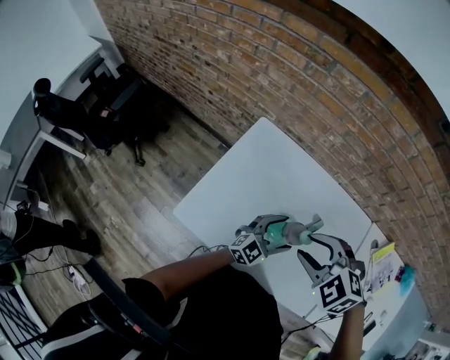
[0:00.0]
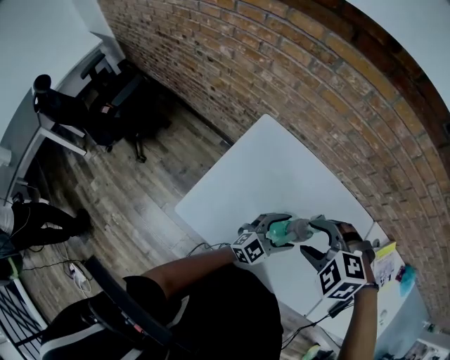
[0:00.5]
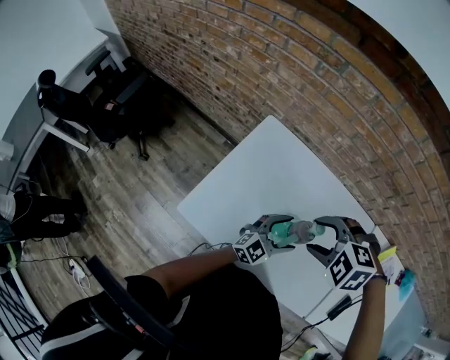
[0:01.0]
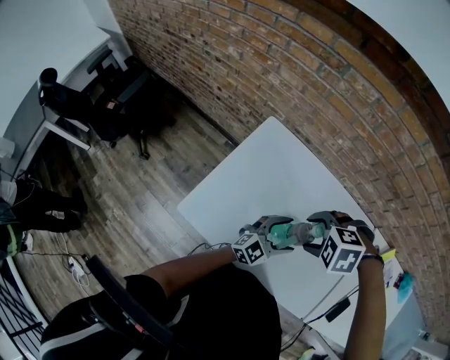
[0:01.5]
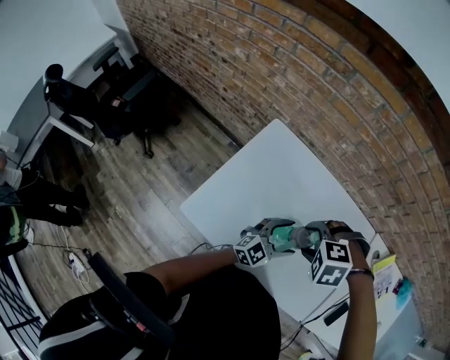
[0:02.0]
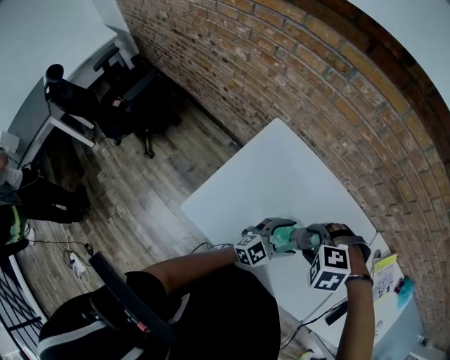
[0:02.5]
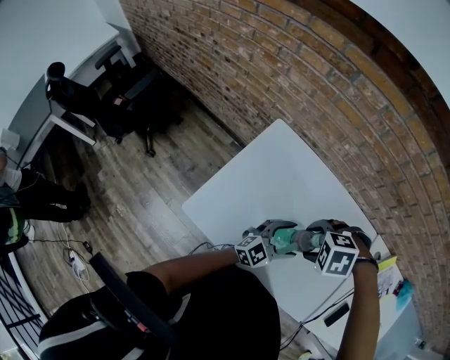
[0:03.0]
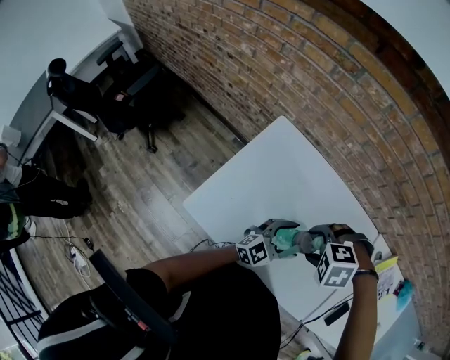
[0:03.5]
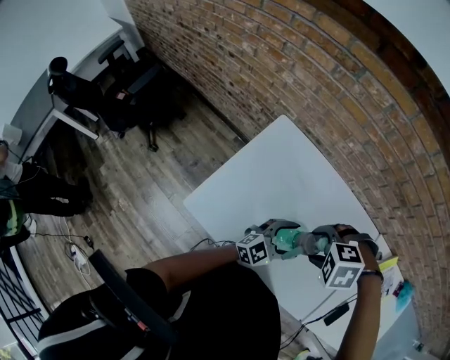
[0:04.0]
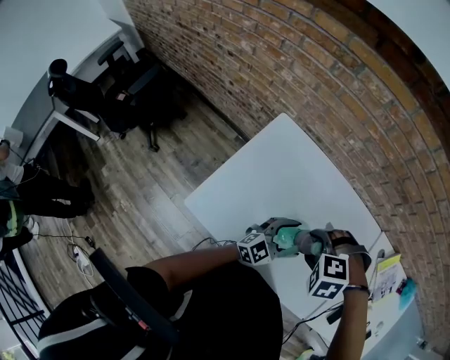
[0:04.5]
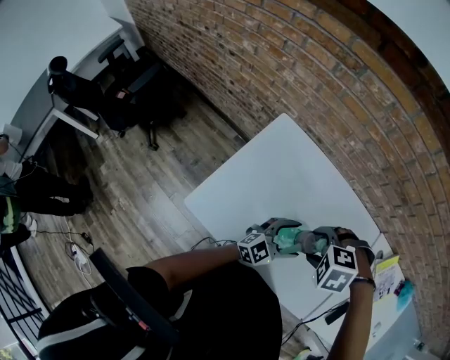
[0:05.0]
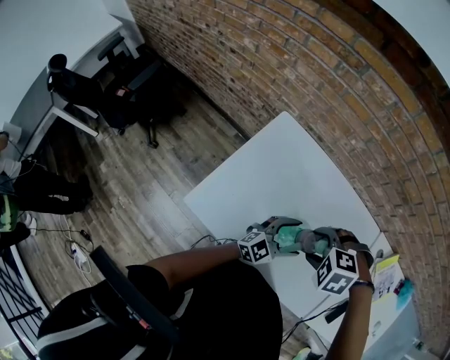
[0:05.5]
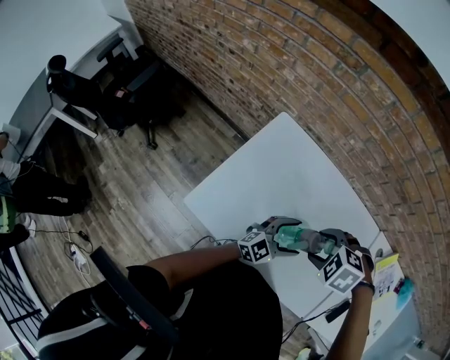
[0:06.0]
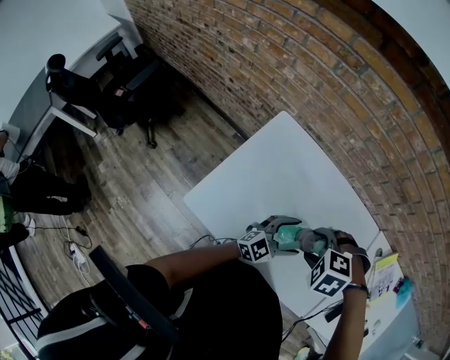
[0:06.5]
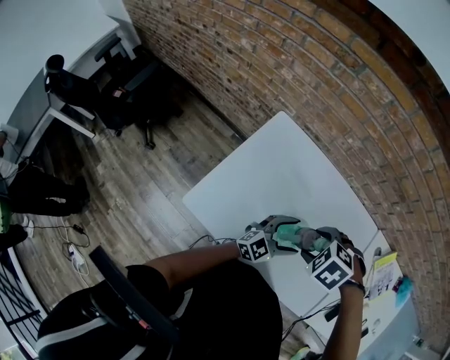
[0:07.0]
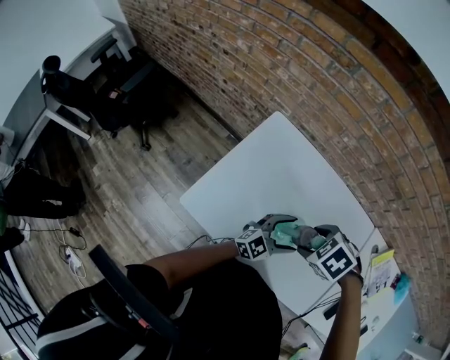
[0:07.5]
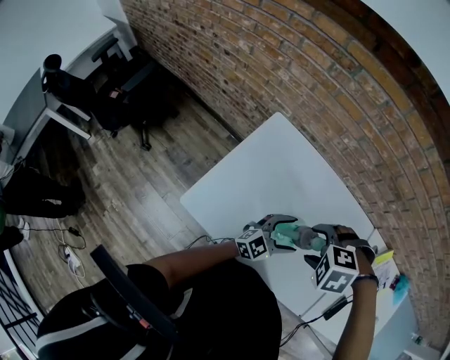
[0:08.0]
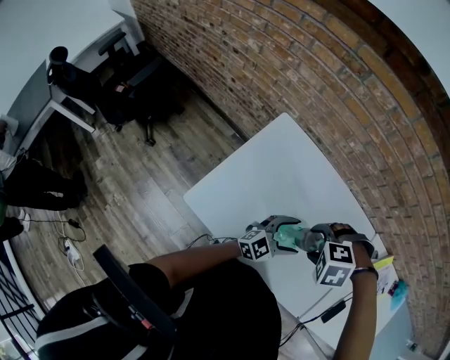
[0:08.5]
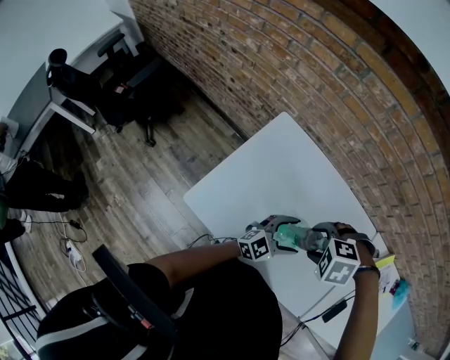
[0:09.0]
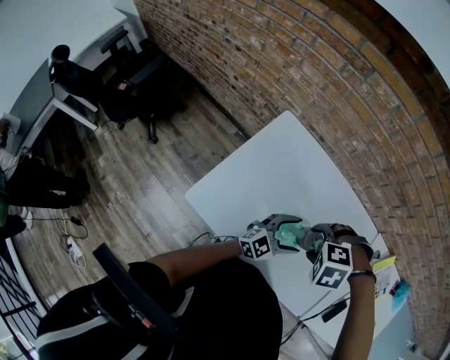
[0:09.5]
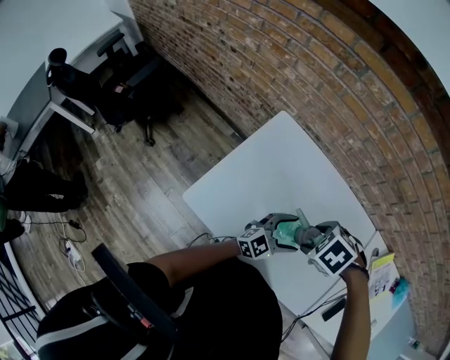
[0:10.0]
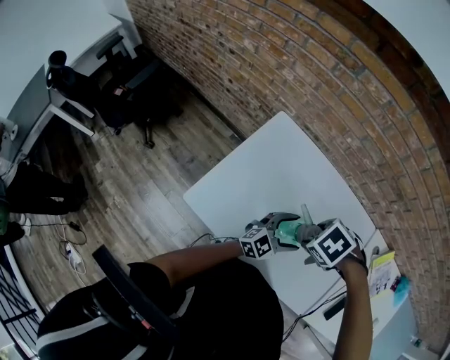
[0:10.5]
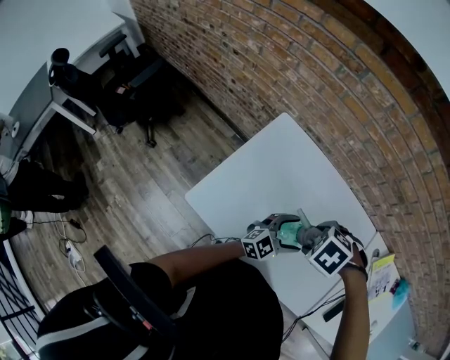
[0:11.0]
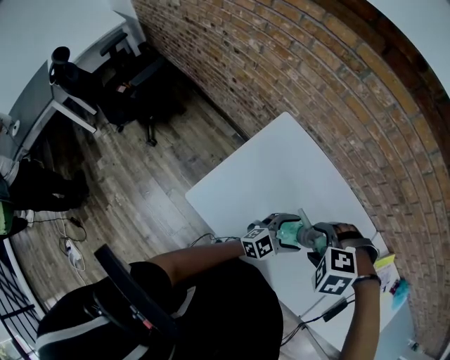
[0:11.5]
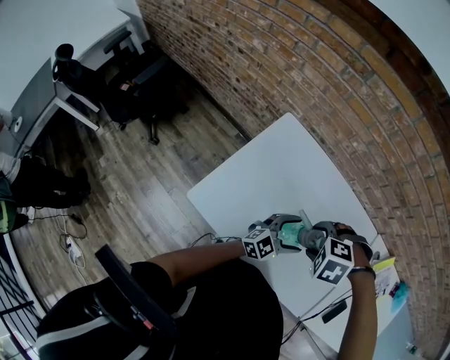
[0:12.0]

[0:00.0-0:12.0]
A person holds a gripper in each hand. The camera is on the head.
0:00.0 to 0:02.0: The right gripper goes some 5 cm downward, turns by approximately 30 degrees, and opens up.
0:02.0 to 0:04.0: The grippers move only a little.
0:04.0 to 0:06.0: The right gripper changes its angle by some 20 degrees.
0:08.0 to 0:10.0: The right gripper swivels about 30 degrees.
0:10.0 to 0:12.0: The right gripper rotates some 30 degrees.

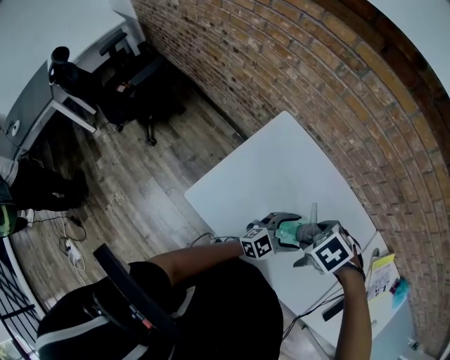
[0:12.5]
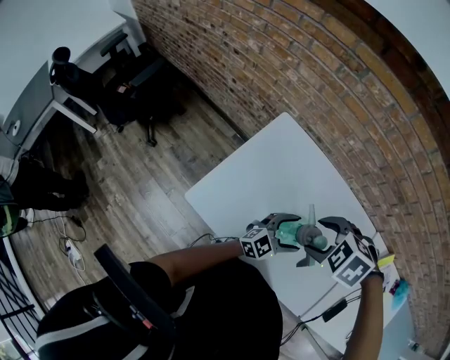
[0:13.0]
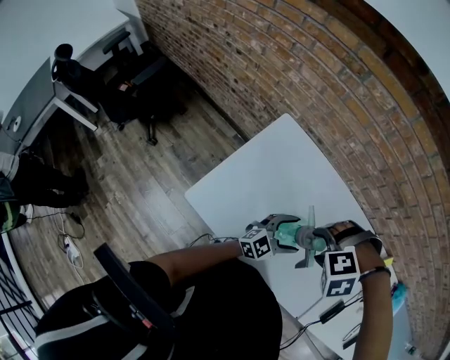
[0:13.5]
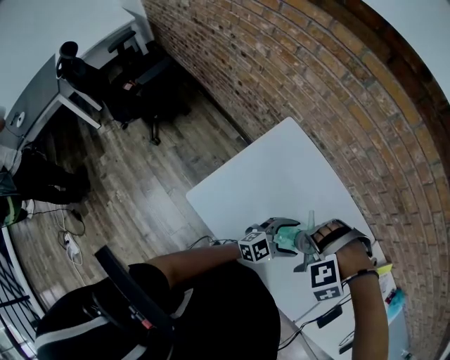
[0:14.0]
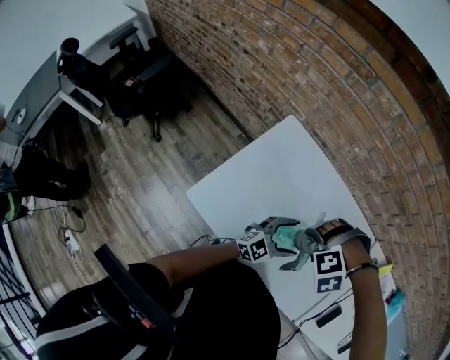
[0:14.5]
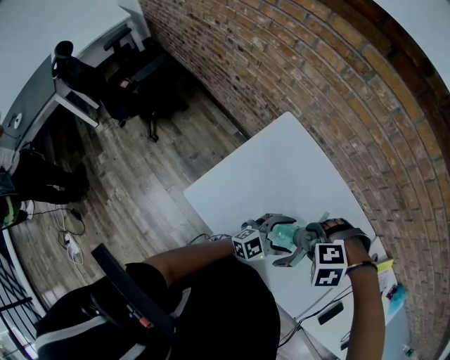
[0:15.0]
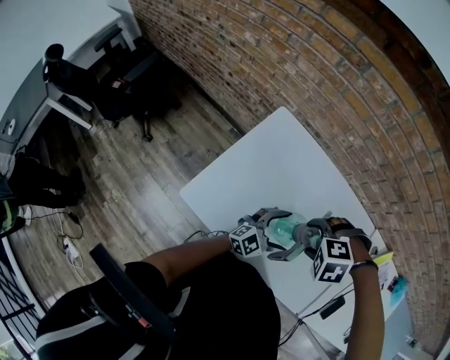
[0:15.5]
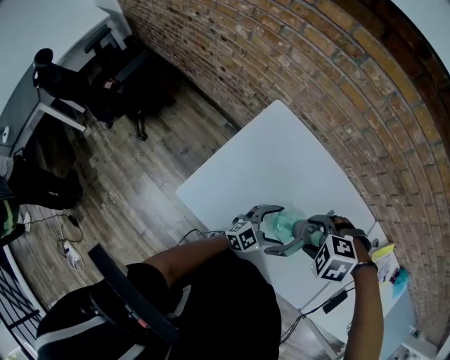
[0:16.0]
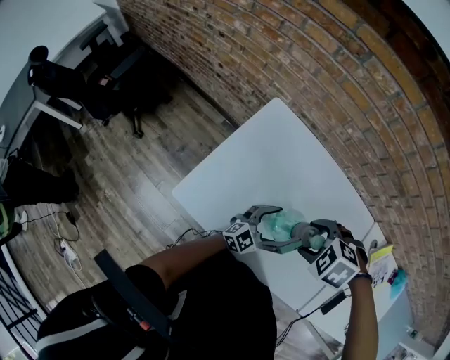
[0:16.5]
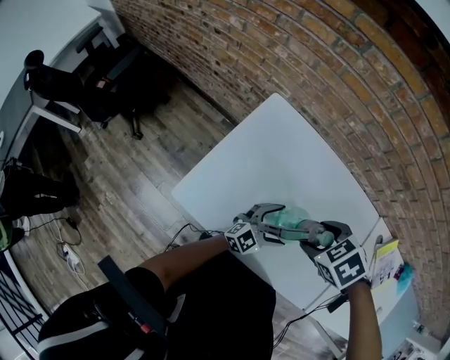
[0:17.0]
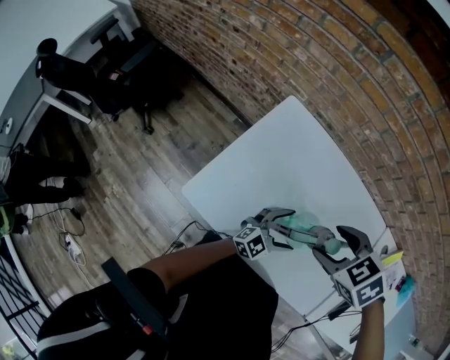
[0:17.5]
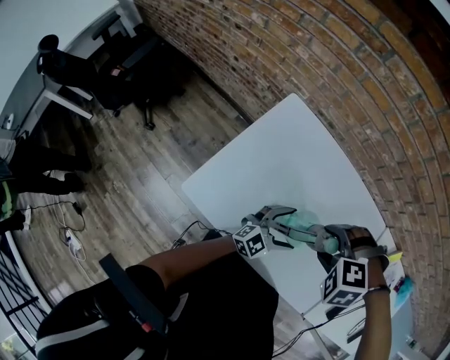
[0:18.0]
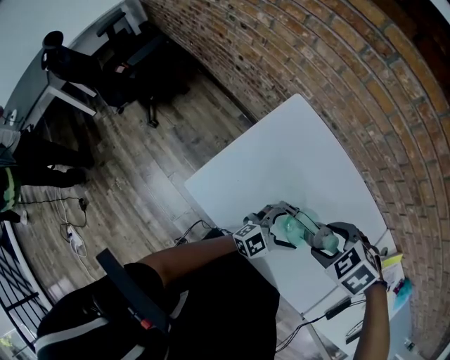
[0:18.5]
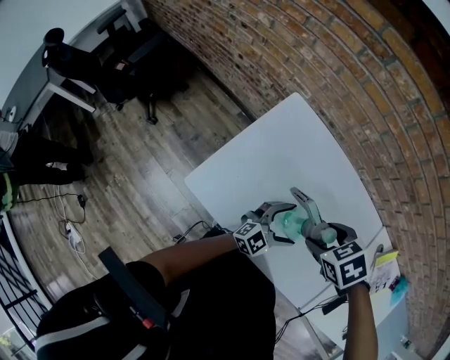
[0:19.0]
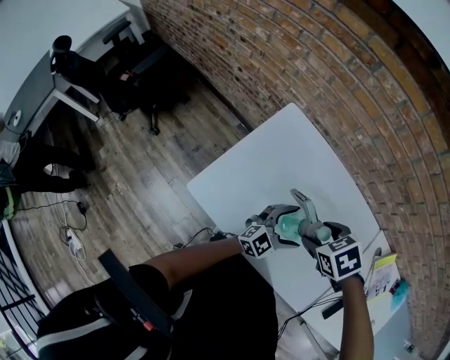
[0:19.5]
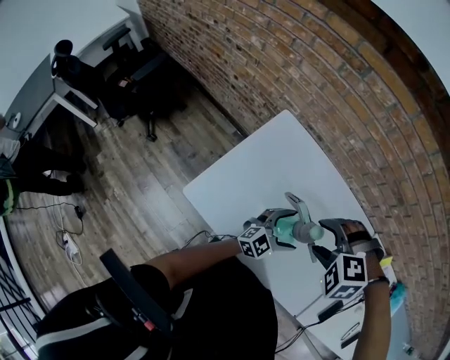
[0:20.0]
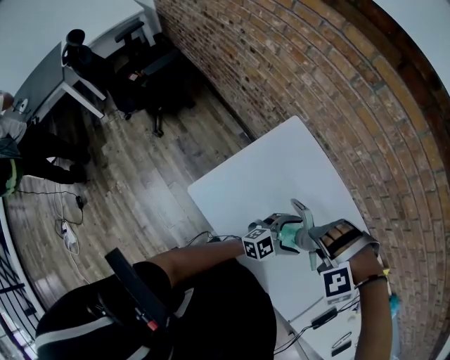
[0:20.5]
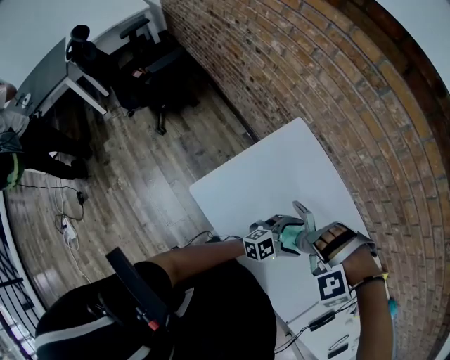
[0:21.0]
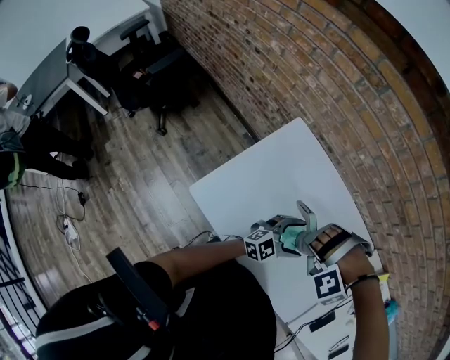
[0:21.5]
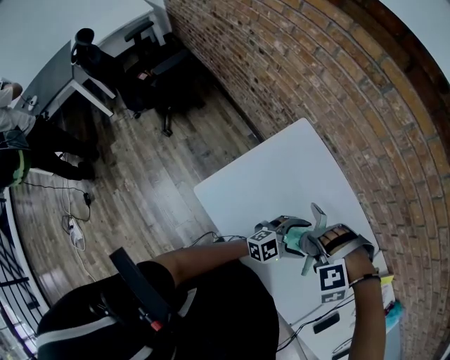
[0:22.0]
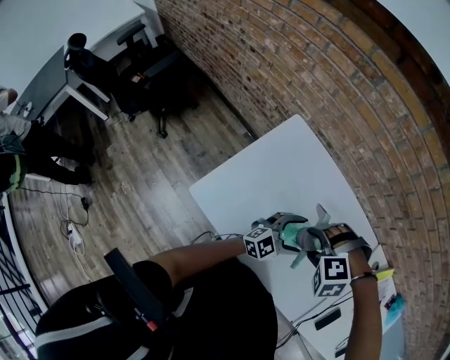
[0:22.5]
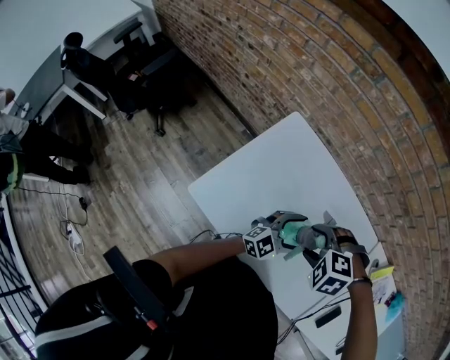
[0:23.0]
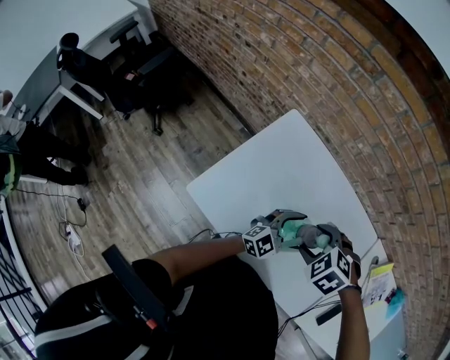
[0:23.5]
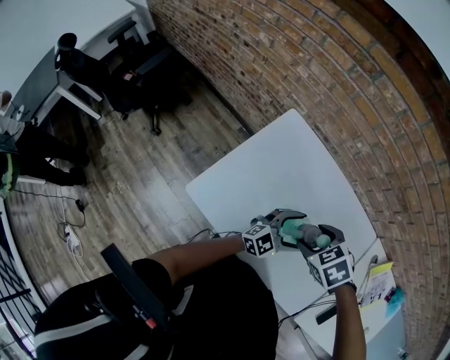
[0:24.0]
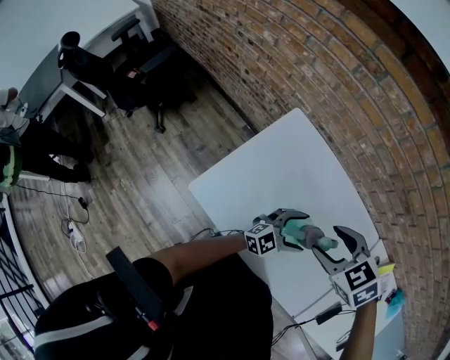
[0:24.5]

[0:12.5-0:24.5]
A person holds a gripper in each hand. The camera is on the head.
0:12.5 to 0:14.5: The right gripper rolls counterclockwise, seen from behind, by approximately 70 degrees.
0:14.5 to 0:16.5: The left gripper travels downward by roughly 5 cm; the right gripper rolls clockwise, seen from behind, by roughly 50 degrees.
0:18.5 to 0:20.5: The right gripper rolls counterclockwise, seen from behind, by some 70 degrees.
0:20.5 to 0:22.5: The right gripper swivels roughly 30 degrees.
0:22.5 to 0:24.5: The right gripper moves upward, approximately 10 cm, and rolls clockwise, seen from behind, by roughly 60 degrees.

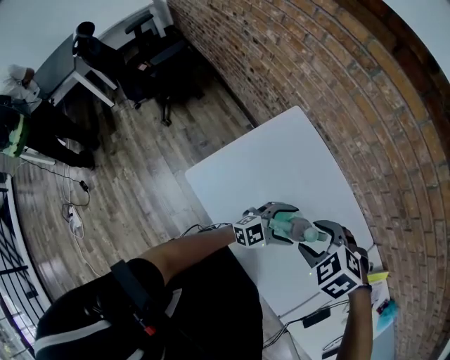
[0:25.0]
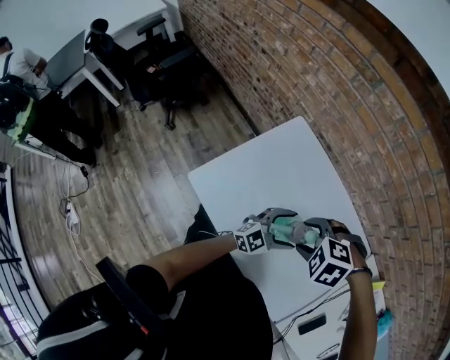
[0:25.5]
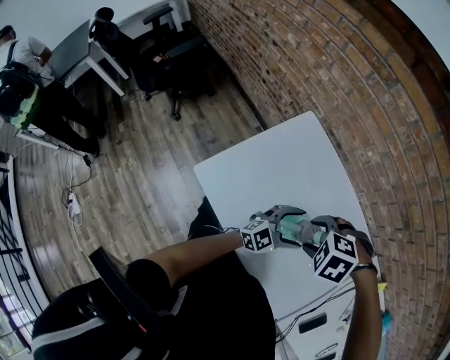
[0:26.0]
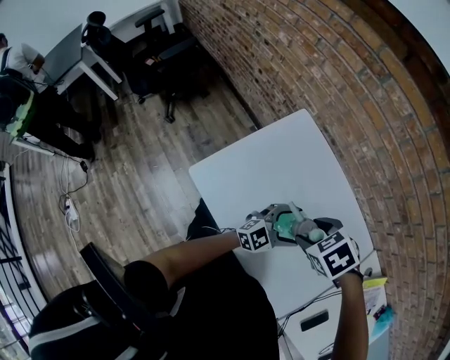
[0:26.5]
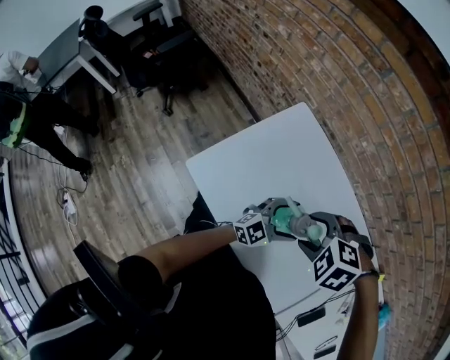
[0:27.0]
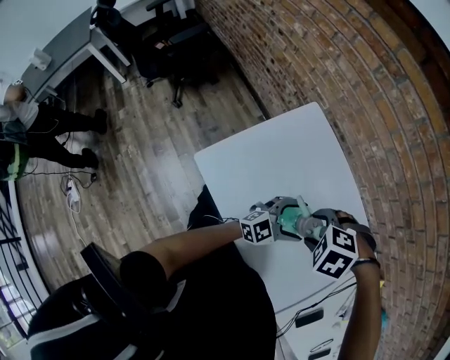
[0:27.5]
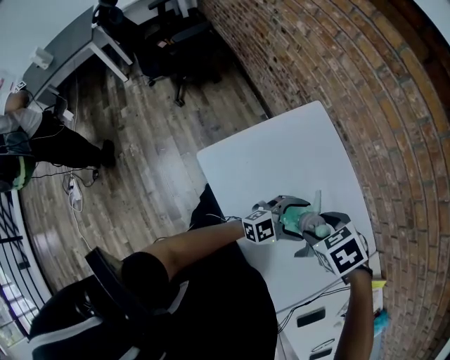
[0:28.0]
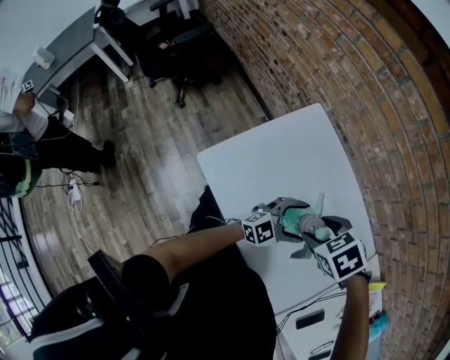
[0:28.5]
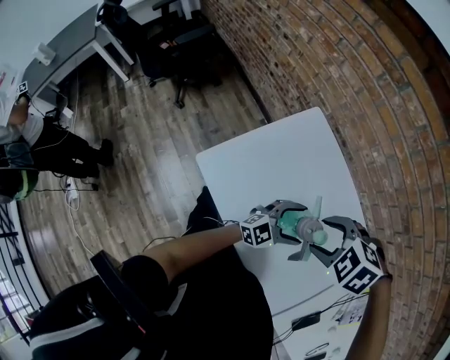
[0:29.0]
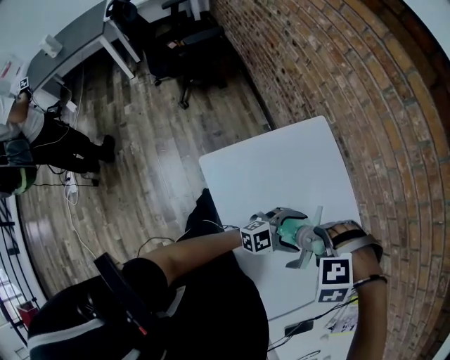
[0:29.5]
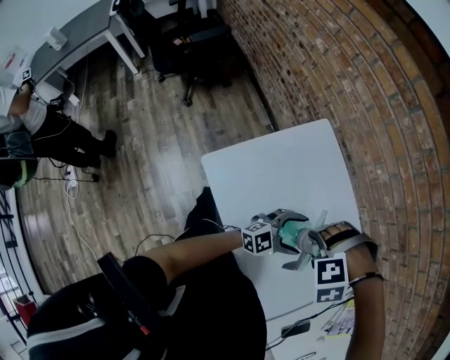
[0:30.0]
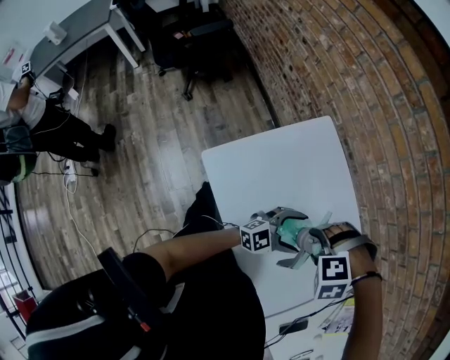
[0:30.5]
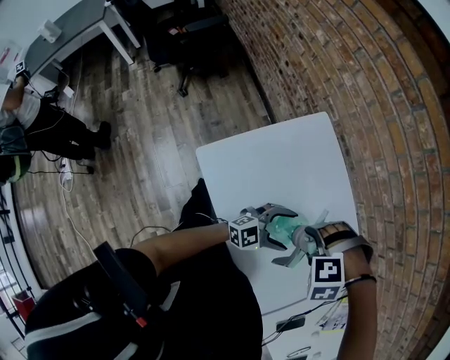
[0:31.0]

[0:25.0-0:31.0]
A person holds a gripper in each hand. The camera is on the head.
0:29.0 to 0:31.0: The right gripper heads downward, covering about 5 cm, and rotates around the line of its fingers by some 40 degrees, counterclockwise from behind.
